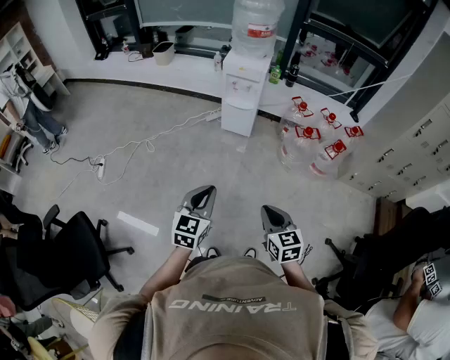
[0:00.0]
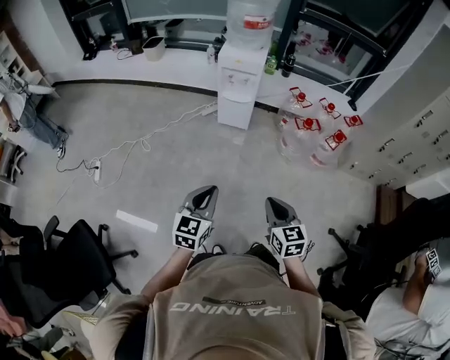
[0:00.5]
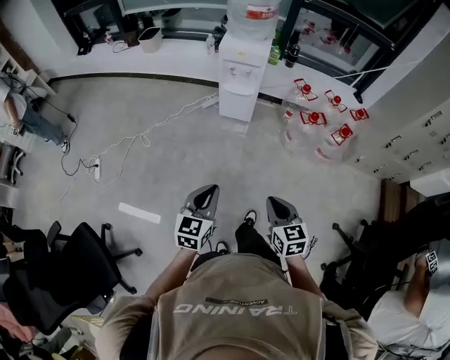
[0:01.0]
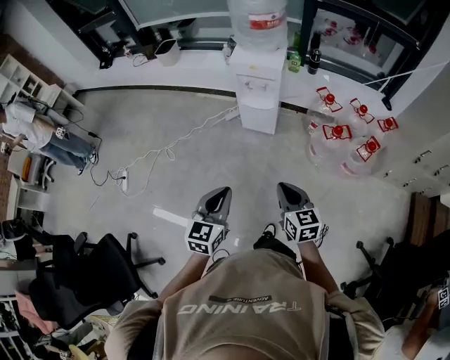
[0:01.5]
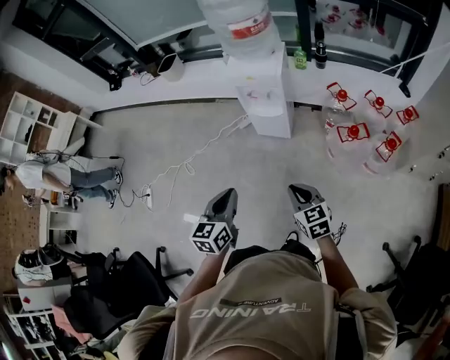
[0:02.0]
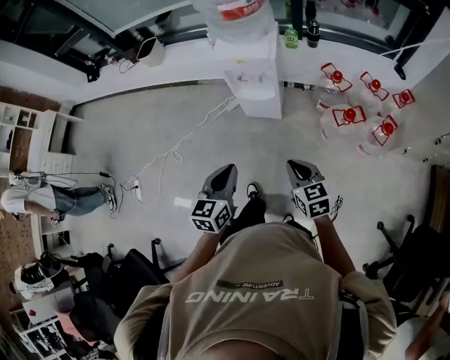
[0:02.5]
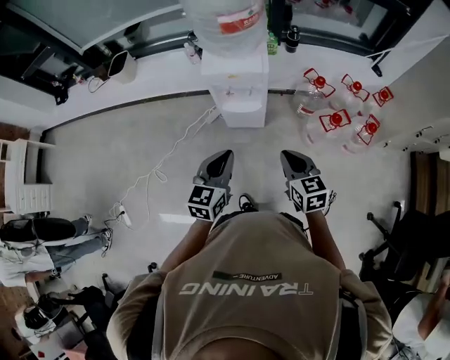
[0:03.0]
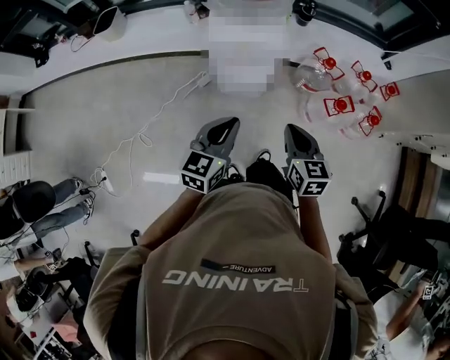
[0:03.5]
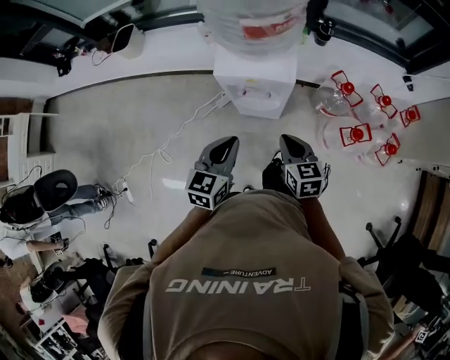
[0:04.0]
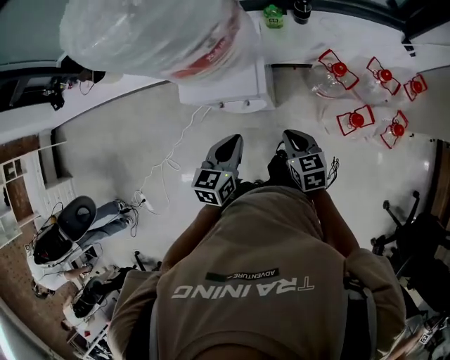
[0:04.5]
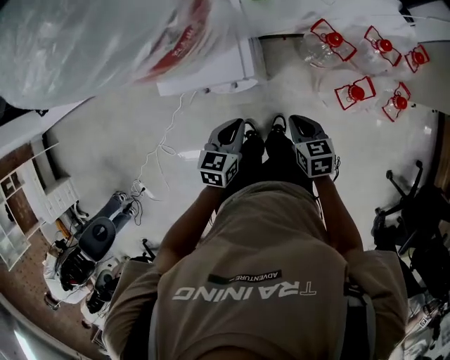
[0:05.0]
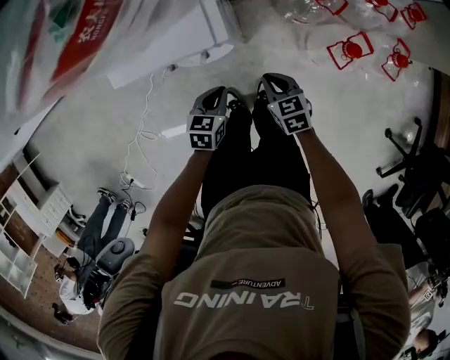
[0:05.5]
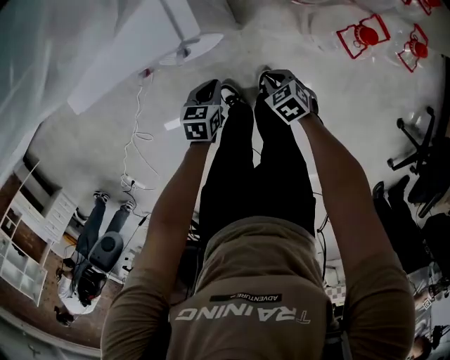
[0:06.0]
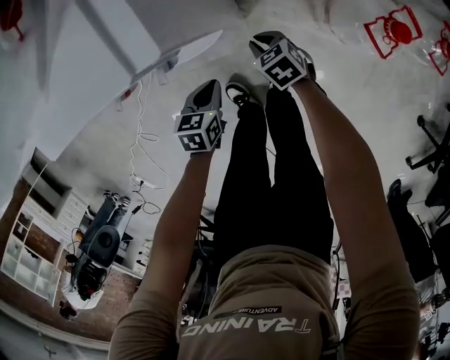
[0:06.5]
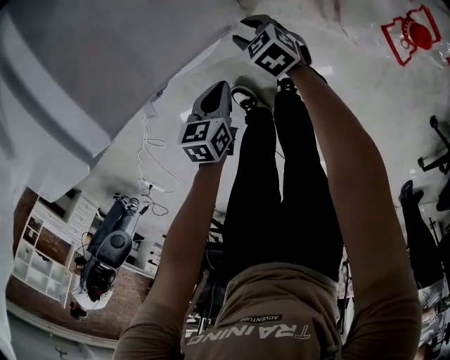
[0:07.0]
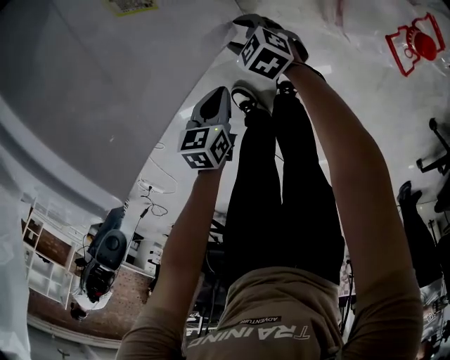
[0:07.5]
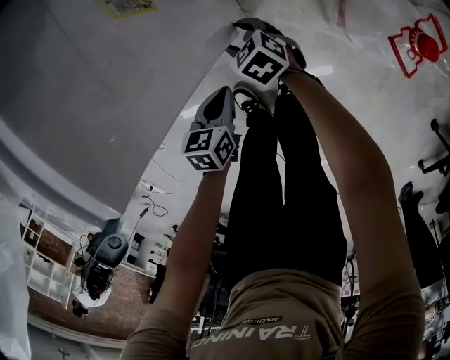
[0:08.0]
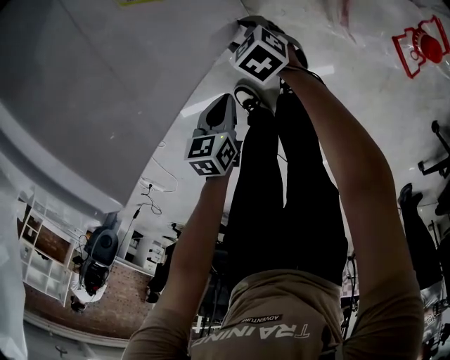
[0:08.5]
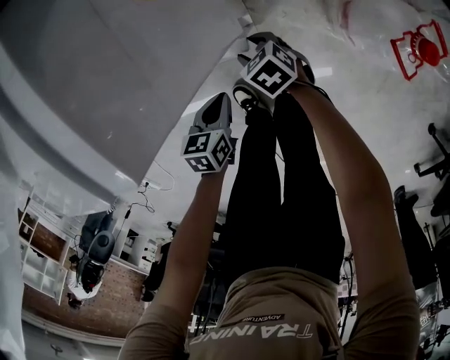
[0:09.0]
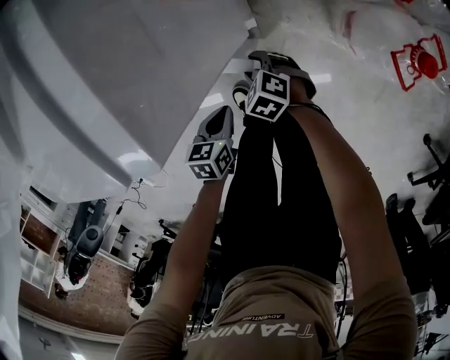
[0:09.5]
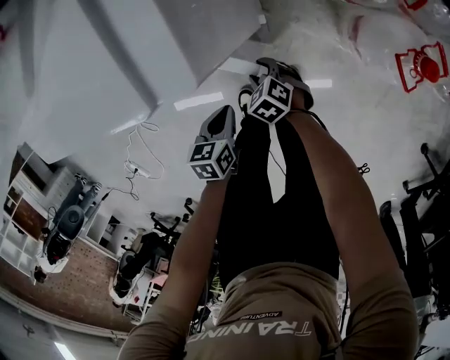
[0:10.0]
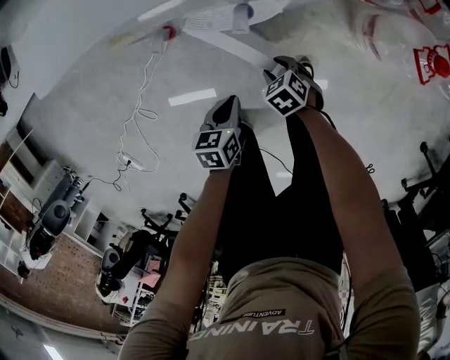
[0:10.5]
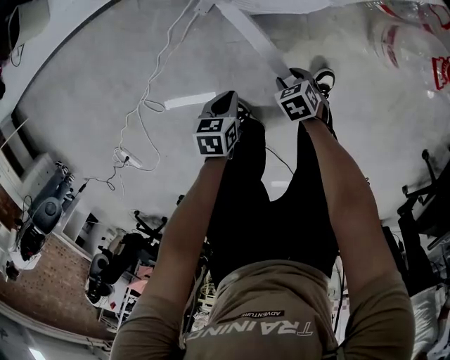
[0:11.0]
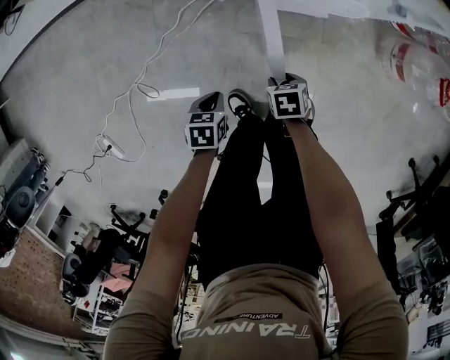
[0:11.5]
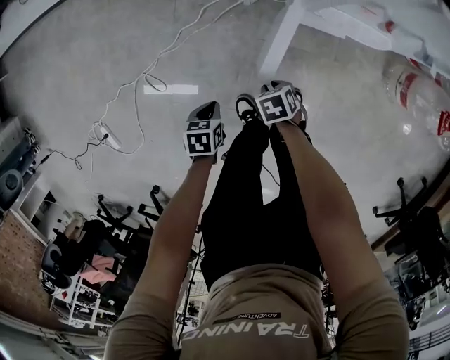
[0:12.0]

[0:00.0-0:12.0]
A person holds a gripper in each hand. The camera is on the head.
0:00.0 to 0:02.0: The grippers both shift forward by about 30 cm.
0:02.0 to 0:04.0: The left gripper changes place by about 35 cm. Meanwhile the right gripper changes place by some 35 cm.
0:04.0 to 0:06.0: The two grippers go roughly 40 cm downward. The right gripper rotates roughly 30 degrees. The left gripper points its fingers roughly 30 degrees further downward.
0:06.0 to 0:08.0: The left gripper travels downward by roughly 10 cm; the right gripper moves forward and downward, some 20 cm, and opens up.
0:08.0 to 0:10.0: The left gripper is displaced to the left and backward by some 10 cm. The right gripper goes approximately 15 cm backward and to the left.
0:10.0 to 0:12.0: The left gripper moves about 40 cm. Meanwhile the right gripper changes place by about 30 cm, swivels some 20 degrees, and closes.

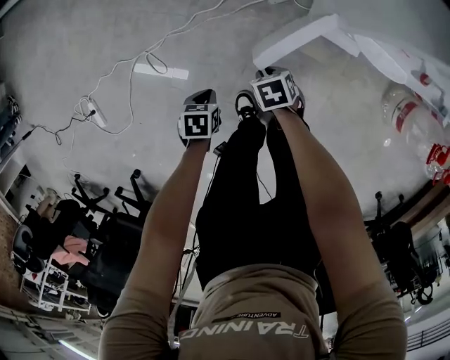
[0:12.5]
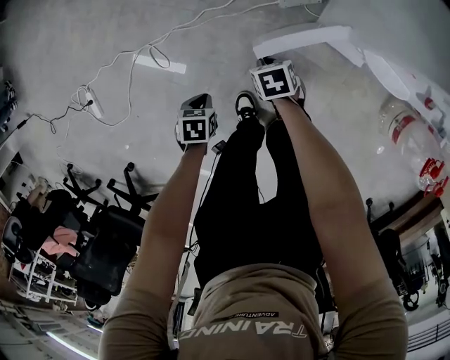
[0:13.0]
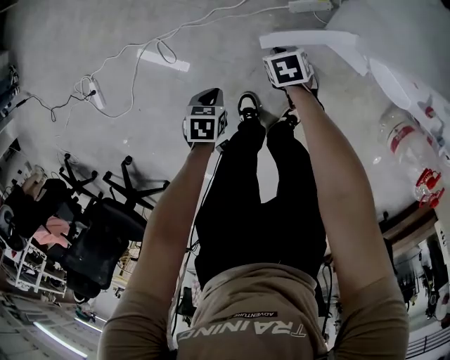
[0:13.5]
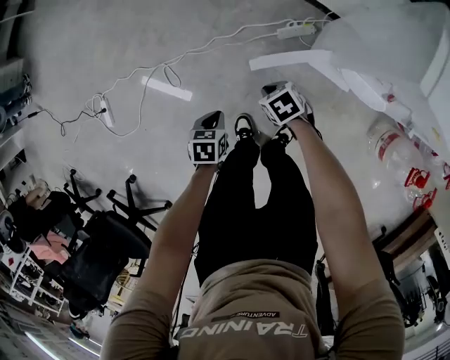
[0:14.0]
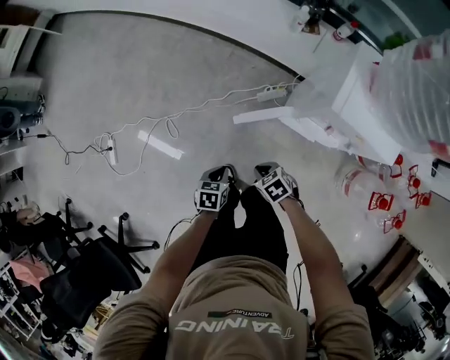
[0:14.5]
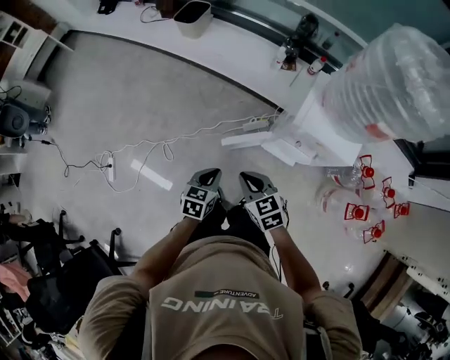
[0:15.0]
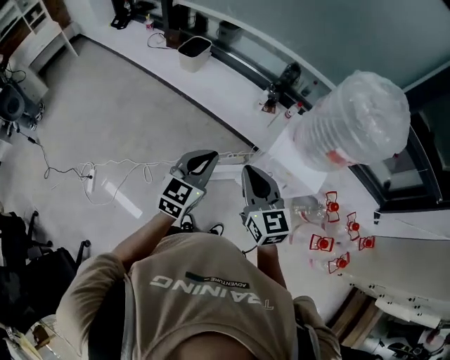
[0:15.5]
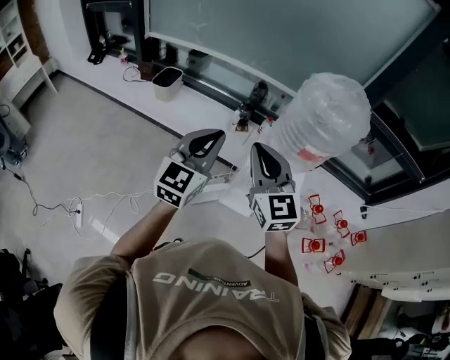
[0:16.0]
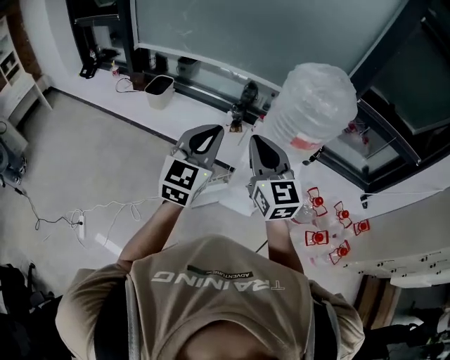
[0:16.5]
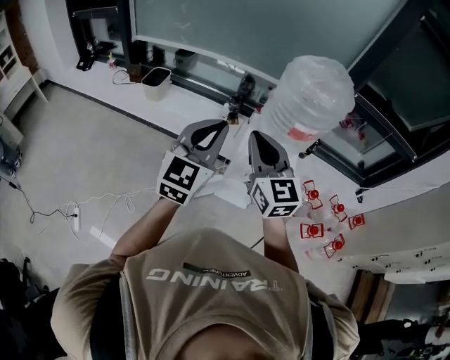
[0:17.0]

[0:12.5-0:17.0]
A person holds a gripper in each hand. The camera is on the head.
0:12.5 to 0:14.5: The two grippers go some 25 cm upward. The right gripper turns by roughly 30 degrees.
0:14.5 to 0:17.0: Both grippers move upward, about 60 cm. The left gripper tips its fingers upward by some 60 degrees. Meanwhile the right gripper angles its fingers upward, by about 60 degrees.

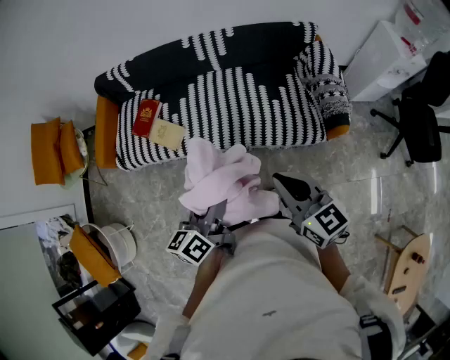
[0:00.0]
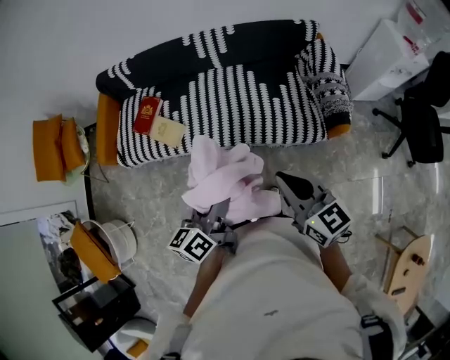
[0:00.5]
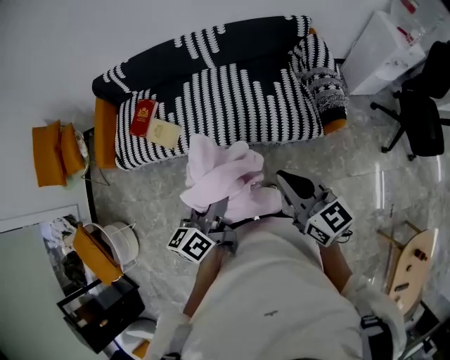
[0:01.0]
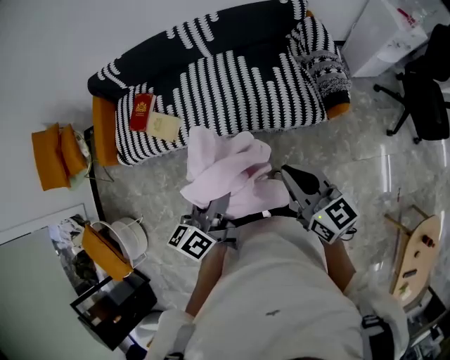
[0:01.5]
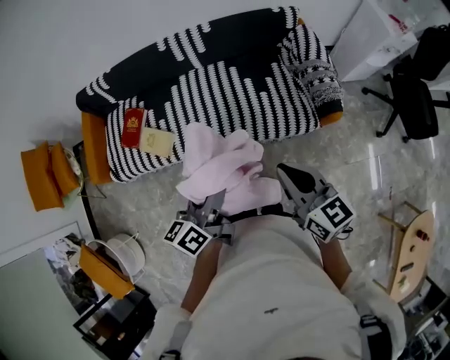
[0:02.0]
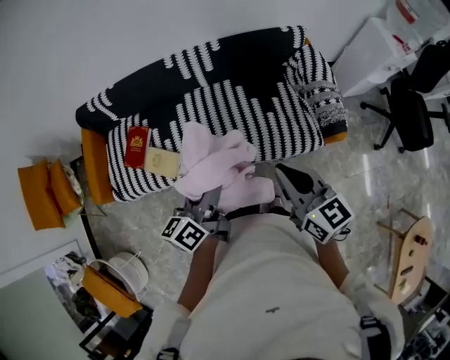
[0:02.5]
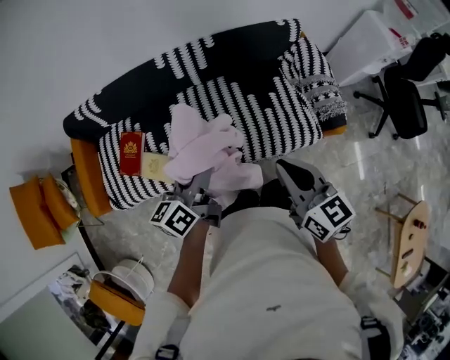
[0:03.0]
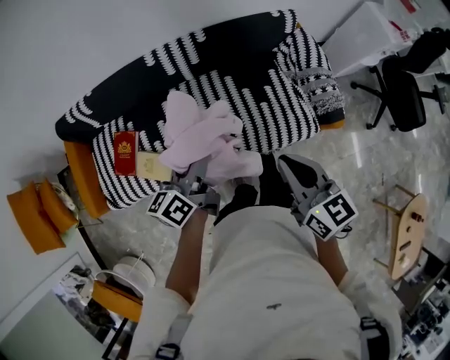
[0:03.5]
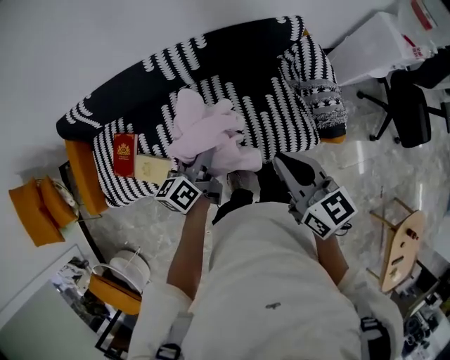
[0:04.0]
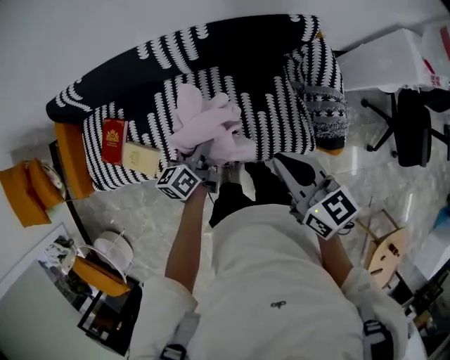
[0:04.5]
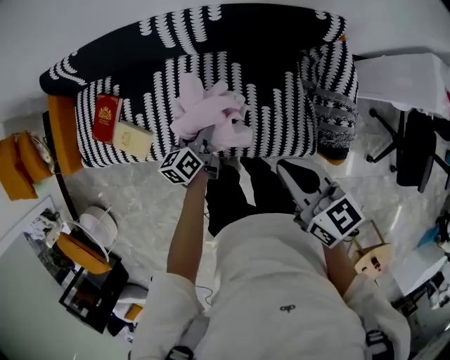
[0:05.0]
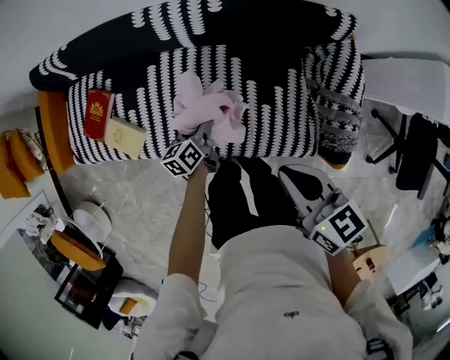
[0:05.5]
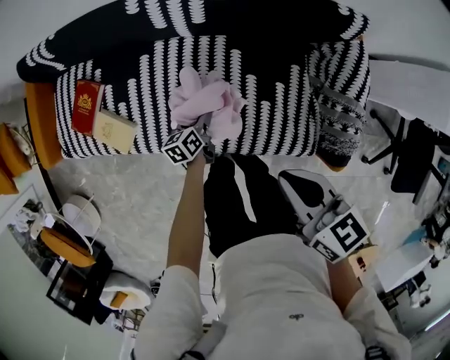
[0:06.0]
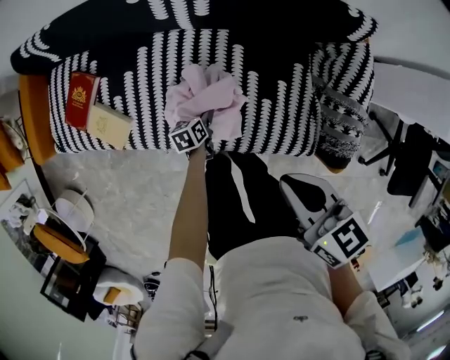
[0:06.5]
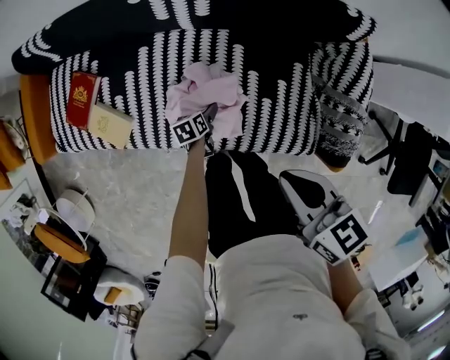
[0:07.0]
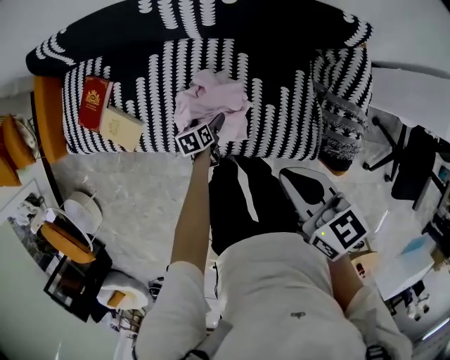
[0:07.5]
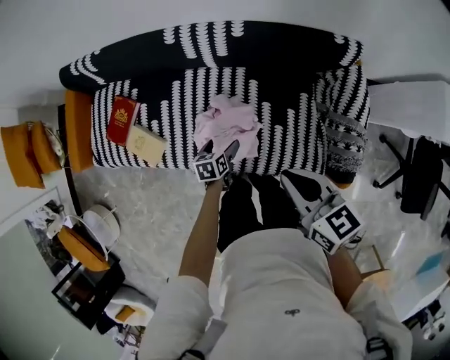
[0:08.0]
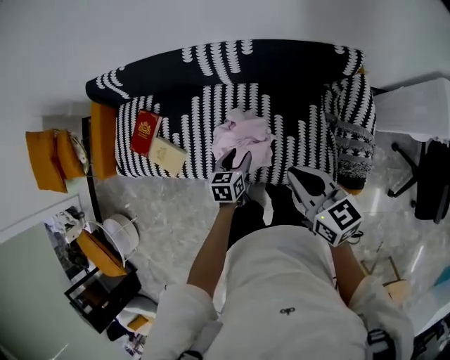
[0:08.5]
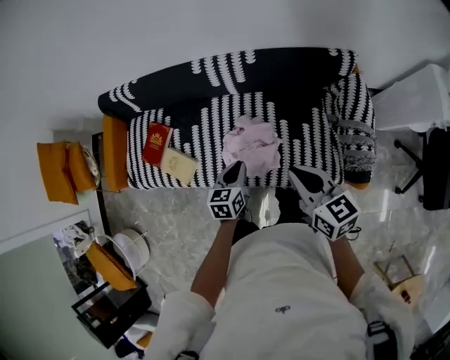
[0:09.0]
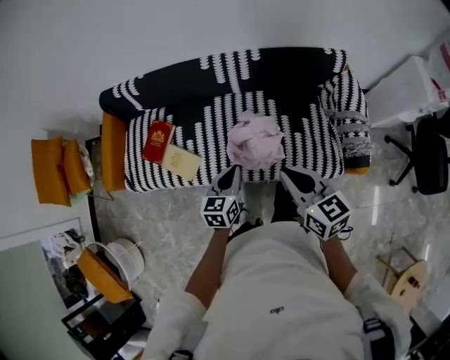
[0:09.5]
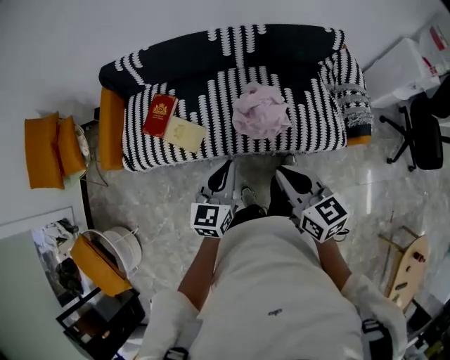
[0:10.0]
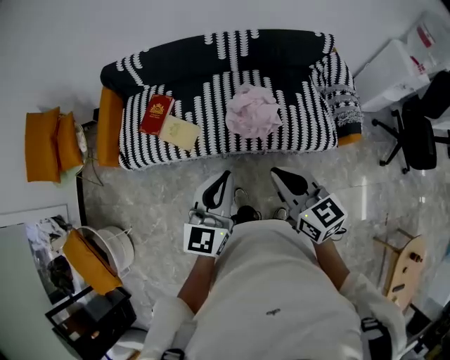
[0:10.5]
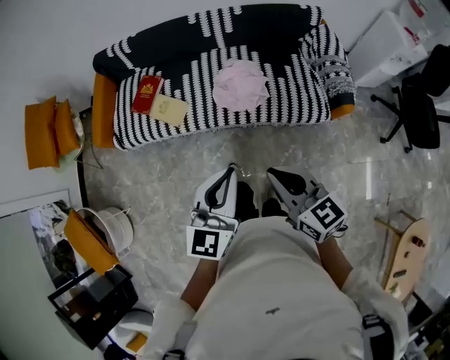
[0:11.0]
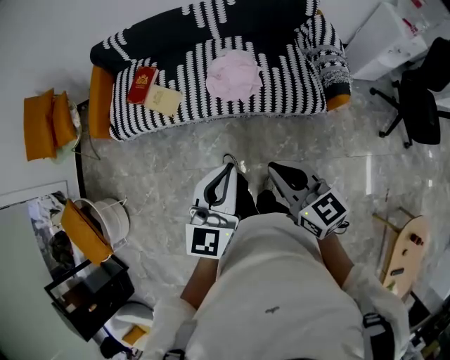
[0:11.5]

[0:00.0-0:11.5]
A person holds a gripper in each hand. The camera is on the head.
0:00.0 to 0:02.0: The left gripper heads forward, covering about 10 cm; the right gripper changes place by roughly 5 cm.
0:02.0 to 0:04.0: Both grippers move forward, roughly 25 cm.
0:04.0 to 0:06.0: The left gripper goes some 35 cm downward, and rotates about 30 degrees. The right gripper travels downward and forward by about 15 cm, and changes its angle by approximately 30 degrees.
0:06.0 to 0:07.5: The left gripper opens up.
0:07.5 to 0:09.5: The left gripper travels upward by some 35 cm, rotates roughly 40 degrees, and closes. Meanwhile the right gripper shifts roughly 20 cm to the left, backward and upward.
0:09.5 to 0:11.5: The left gripper is displaced backward and upward by some 40 cm, and rotates approximately 30 degrees. The right gripper is displaced backward by some 35 cm.
